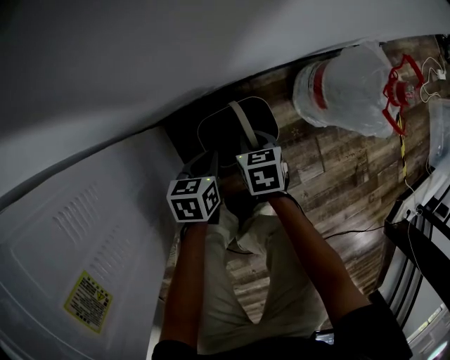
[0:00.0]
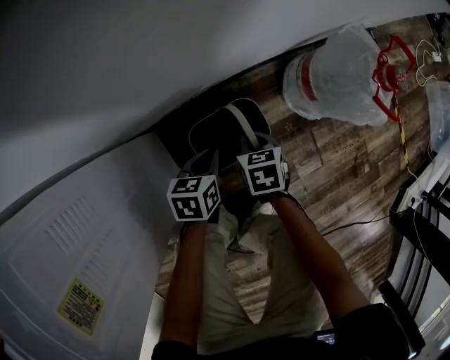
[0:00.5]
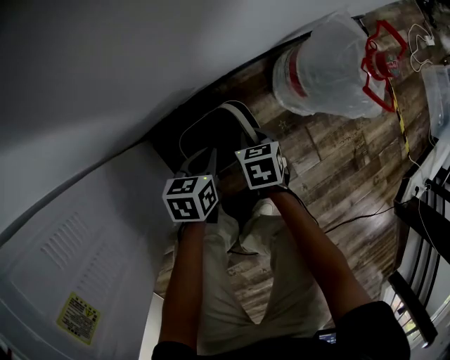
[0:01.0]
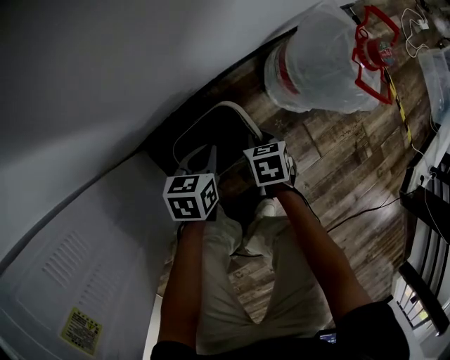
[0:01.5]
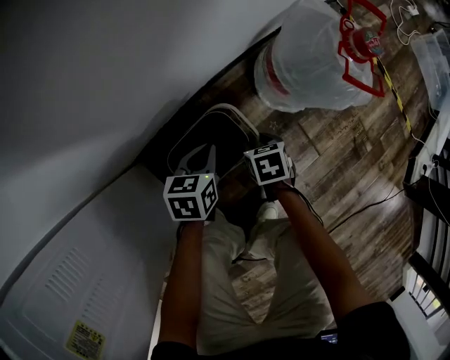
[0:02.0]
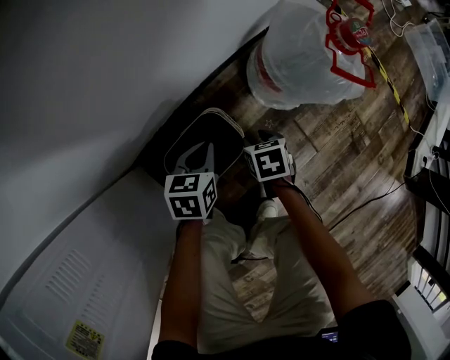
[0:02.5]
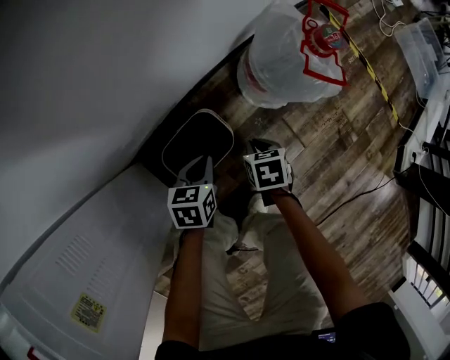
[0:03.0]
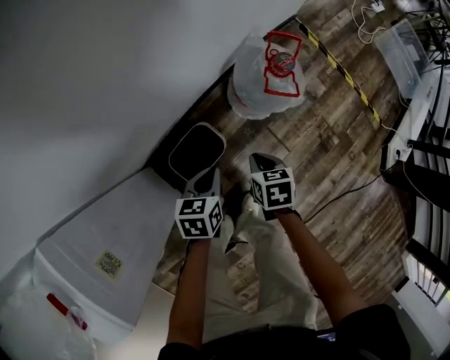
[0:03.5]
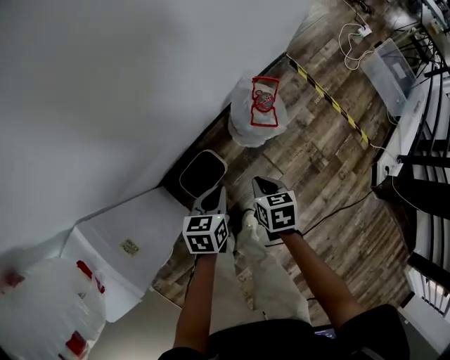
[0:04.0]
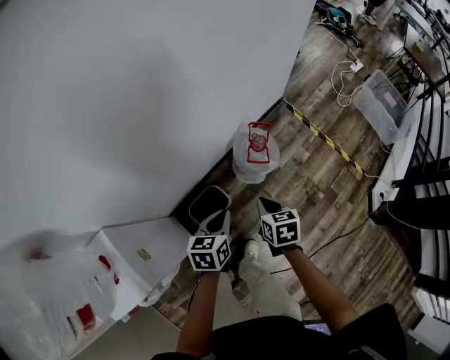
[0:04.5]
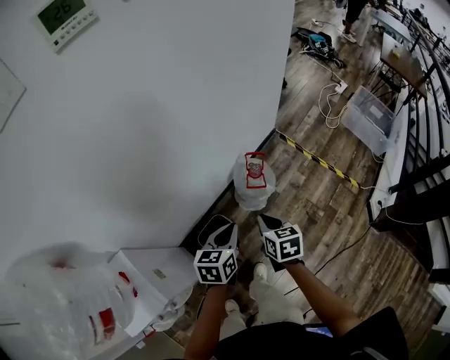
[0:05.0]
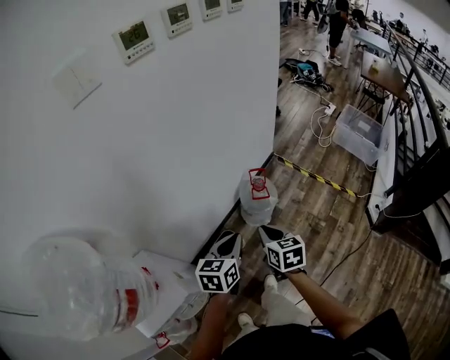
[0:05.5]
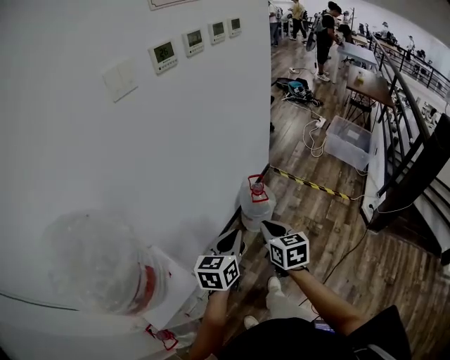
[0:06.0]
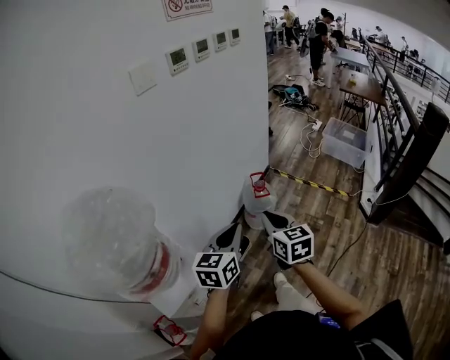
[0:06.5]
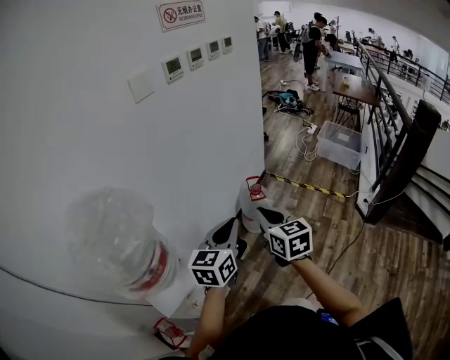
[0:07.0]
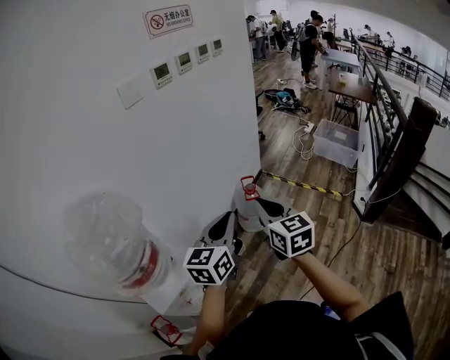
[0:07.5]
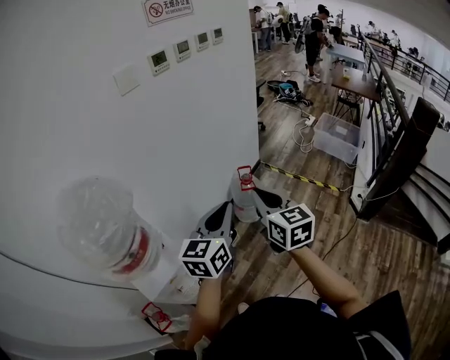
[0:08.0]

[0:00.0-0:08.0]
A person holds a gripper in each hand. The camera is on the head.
0:00.0 to 0:02.0: The right gripper goes about 15 cm to the right and downward, and opens. Meanwhile the left gripper travels to the right and forward by approximately 10 cm, and swivels roughly 20 degrees.
0:02.0 to 0:04.0: Both grippers move upward, roughly 40 cm. The right gripper closes its fingers.
0:04.0 to 0:06.0: The two grippers go some 40 cm upward and backward. The right gripper angles its fingers upward, by approximately 30 degrees. The left gripper turns by some 30 degrees.
0:06.0 to 0:08.0: Both grippers move upward and backward, roughly 20 cm.

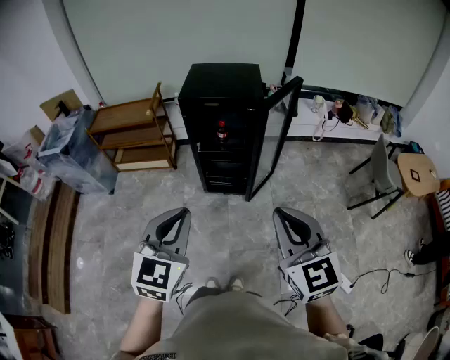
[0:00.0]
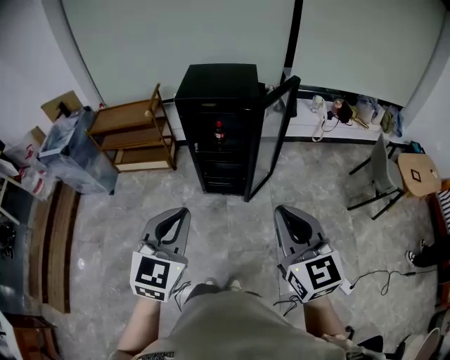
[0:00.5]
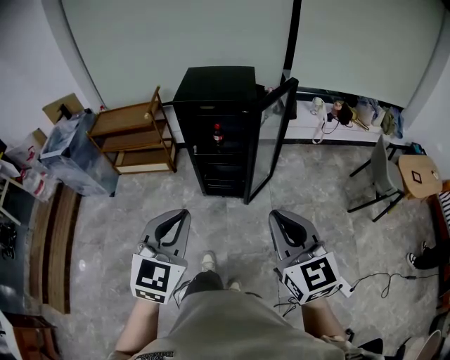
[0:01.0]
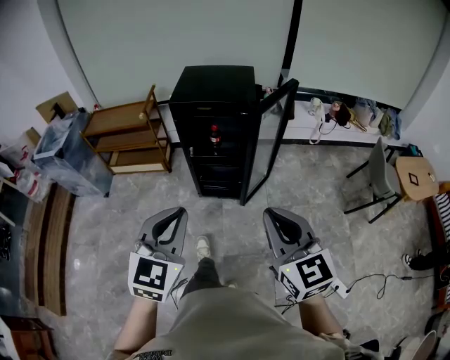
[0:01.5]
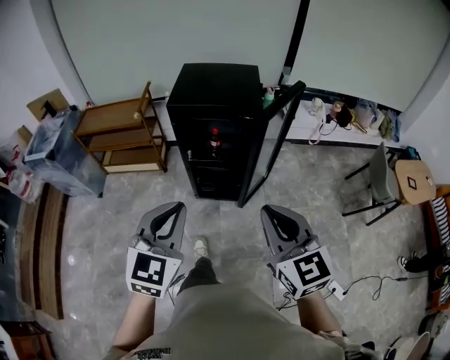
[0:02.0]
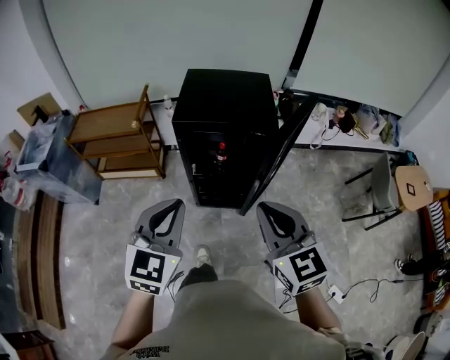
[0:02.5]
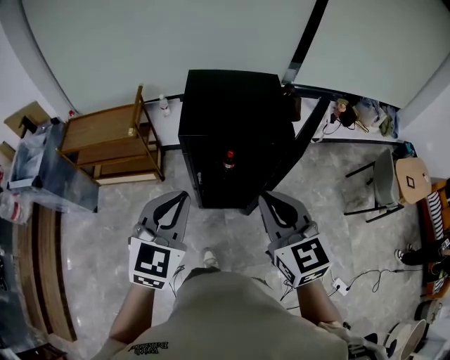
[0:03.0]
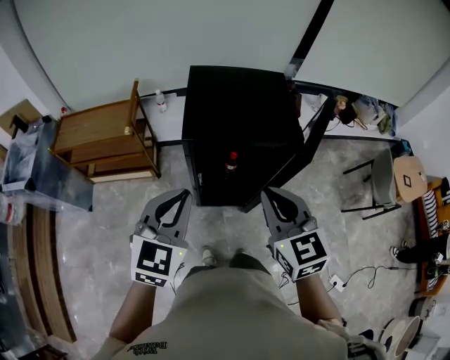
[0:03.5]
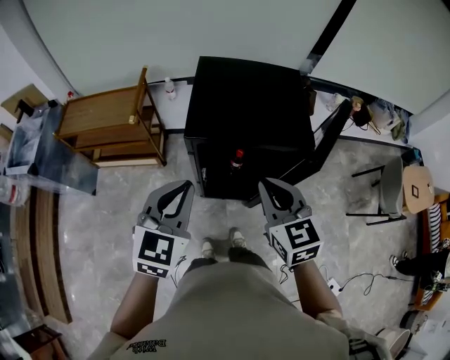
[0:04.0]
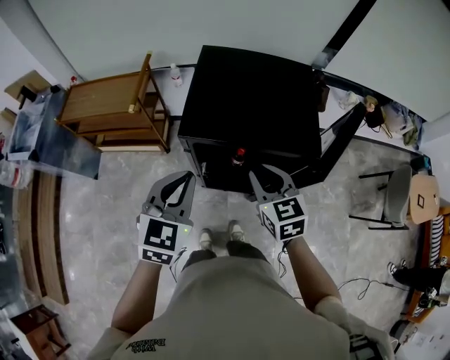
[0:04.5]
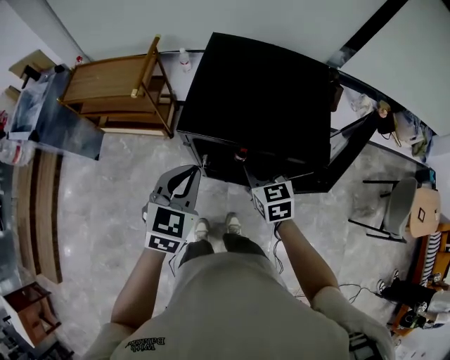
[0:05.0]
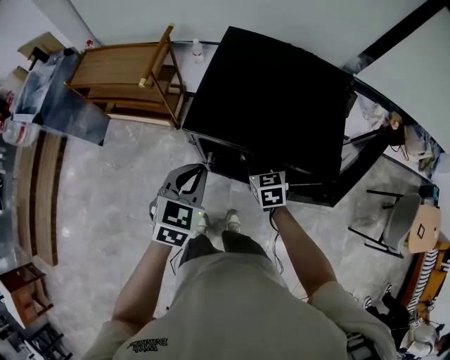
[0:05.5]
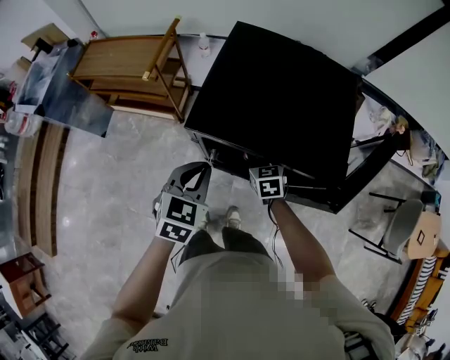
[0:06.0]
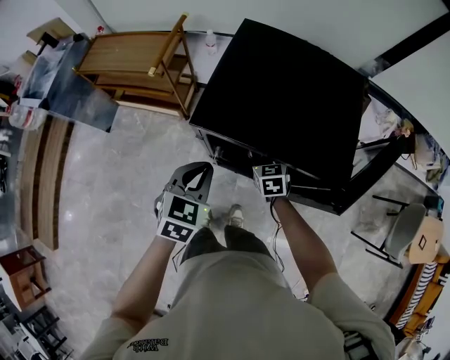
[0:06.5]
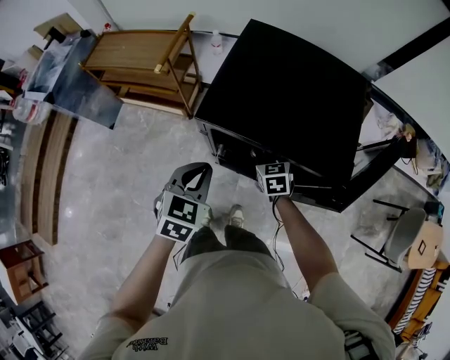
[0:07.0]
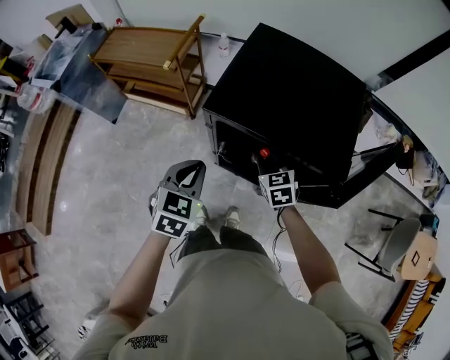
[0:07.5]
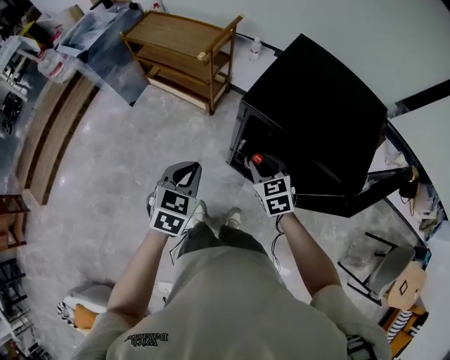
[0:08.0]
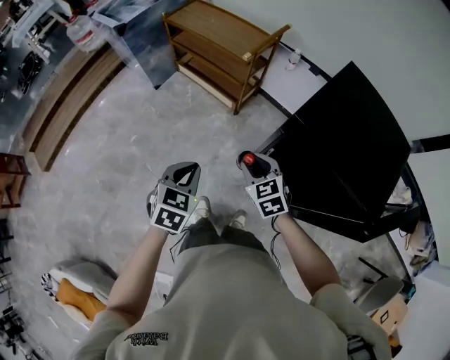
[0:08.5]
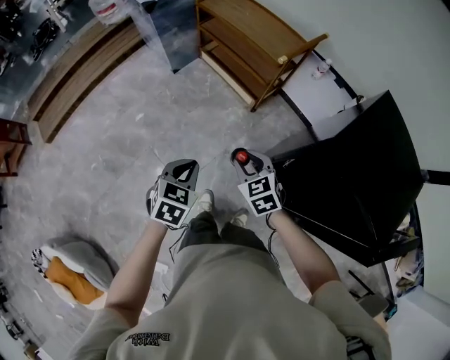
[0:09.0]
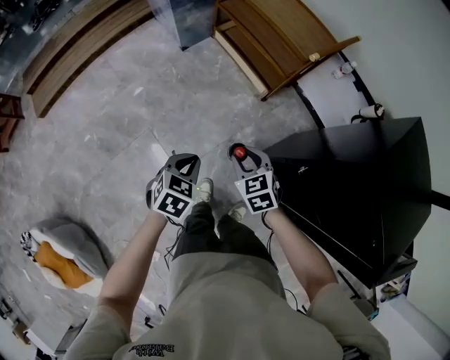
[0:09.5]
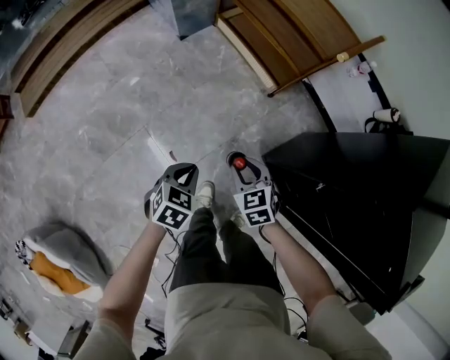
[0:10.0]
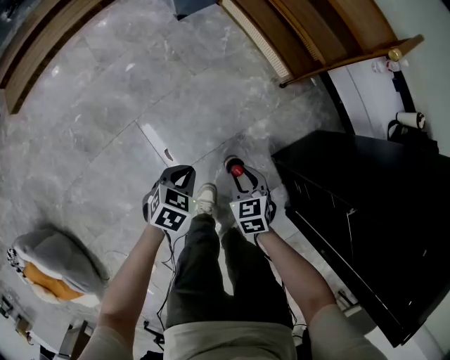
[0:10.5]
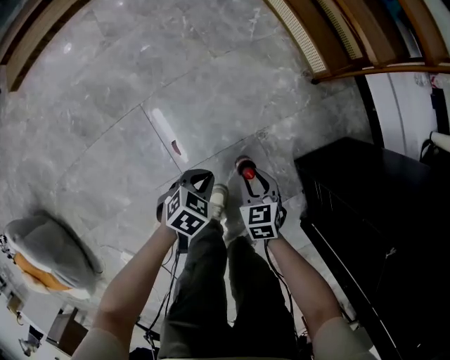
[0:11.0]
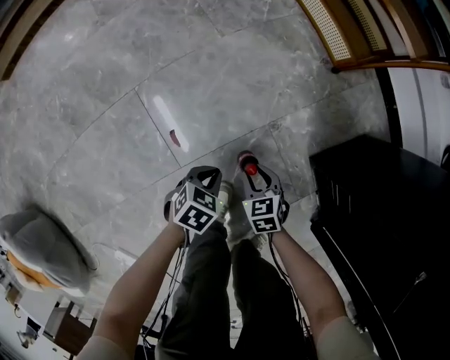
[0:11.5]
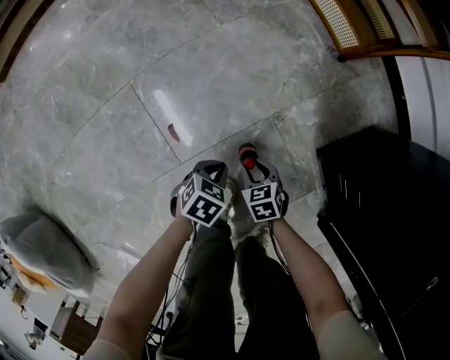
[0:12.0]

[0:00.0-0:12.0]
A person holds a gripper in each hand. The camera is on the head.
0:00.0 to 0:02.0: Both grippers move forward, roughly 10 cm.
0:02.0 to 0:04.0: The two grippers go about 30 cm forward.
0:04.0 to 0:06.0: The right gripper heads downward and forward, covering approximately 35 cm, changes its angle by approximately 20 degrees, and opens its fingers. Meanwhile the left gripper shifts approximately 20 cm downward and forward, and rotates about 20 degrees.
0:06.0 to 0:08.0: The right gripper shifts approximately 15 cm to the left, backward and upward, and rotates approximately 30 degrees, while the left gripper travels to the left and backward by approximately 15 cm.
0:08.0 to 0:10.0: The right gripper shifts about 40 cm to the left and downward, and turns by about 30 degrees. The left gripper shifts about 40 cm downward and to the left, and turns by about 30 degrees.
0:10.0 to 0:12.0: Both grippers move downward, approximately 50 cm. The right gripper turns by roughly 20 degrees.

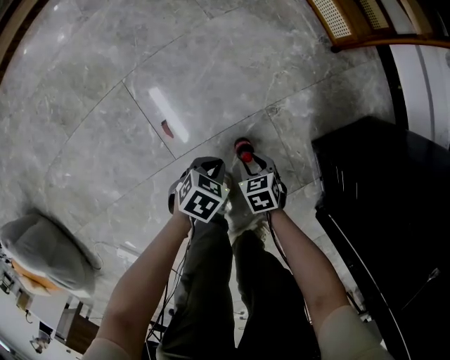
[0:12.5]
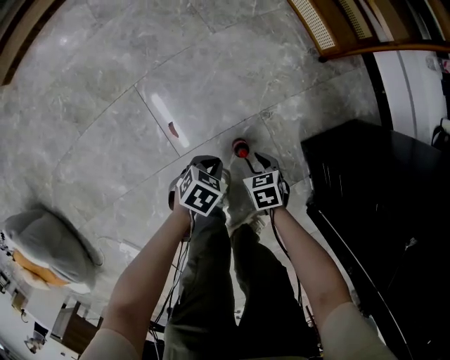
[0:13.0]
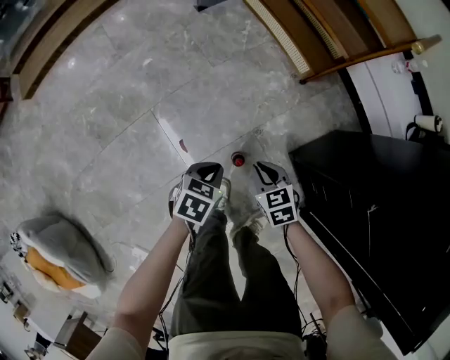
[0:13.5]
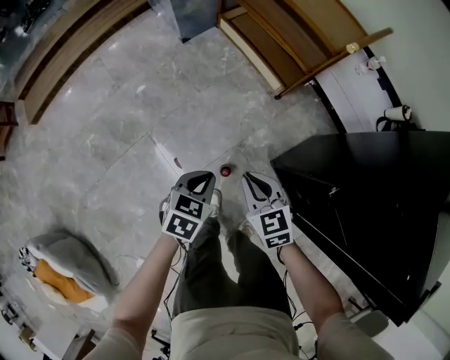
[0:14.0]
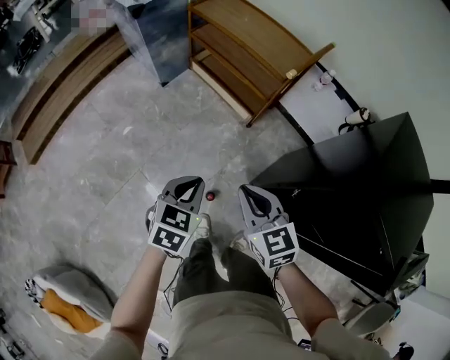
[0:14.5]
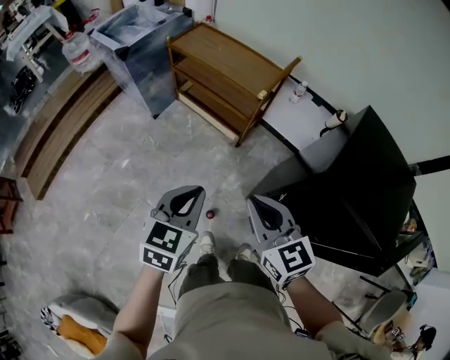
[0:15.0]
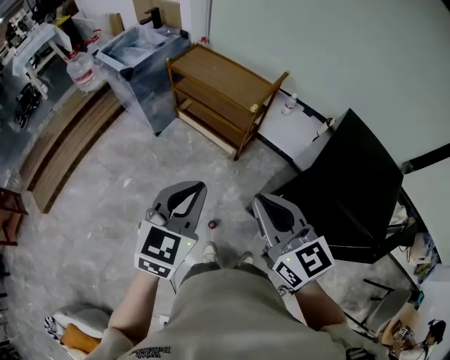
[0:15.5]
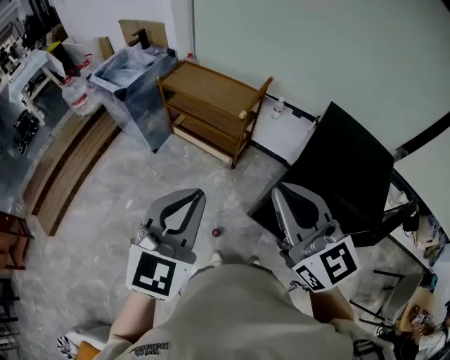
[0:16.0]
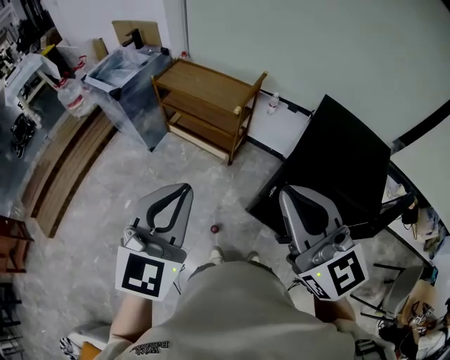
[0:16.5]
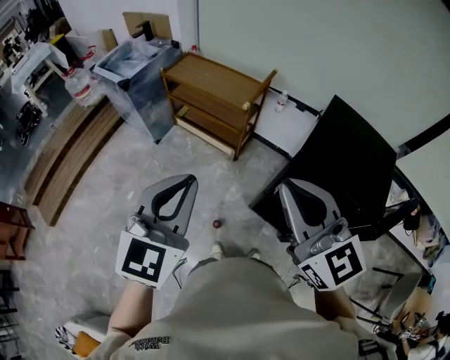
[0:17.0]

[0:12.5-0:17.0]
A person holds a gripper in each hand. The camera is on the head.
0:12.5 to 0:14.5: The two grippers go about 70 cm upward. The left gripper swivels about 30 degrees, while the right gripper tips its fingers upward by about 40 degrees, and closes.
0:14.5 to 0:17.0: The grippers both shift upward by roughly 35 cm. The left gripper tilts its fingers roughly 30 degrees upward, while the right gripper turns by some 30 degrees.

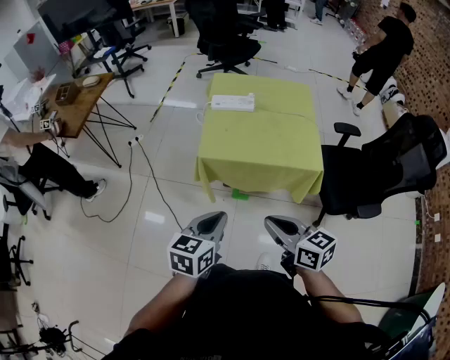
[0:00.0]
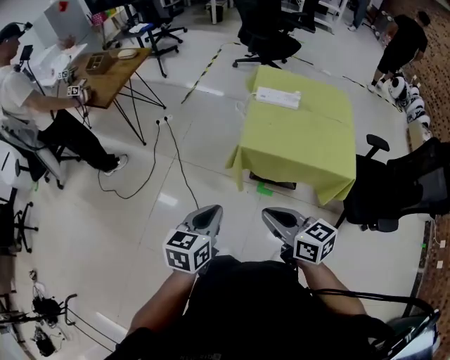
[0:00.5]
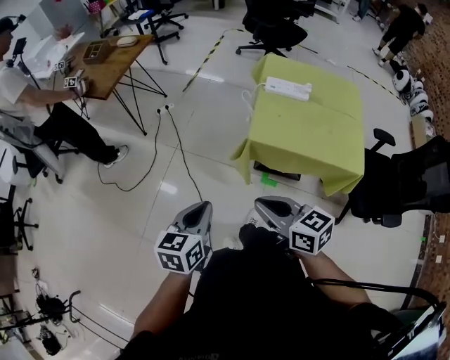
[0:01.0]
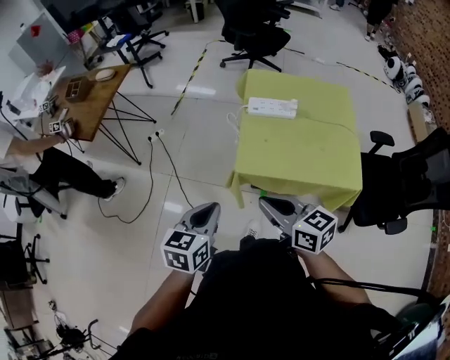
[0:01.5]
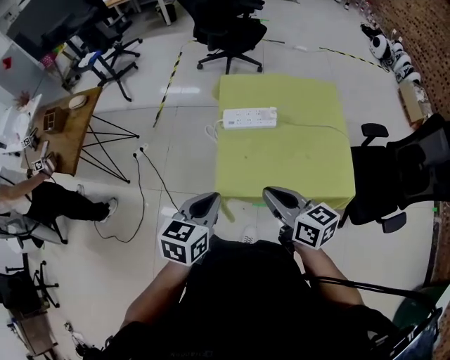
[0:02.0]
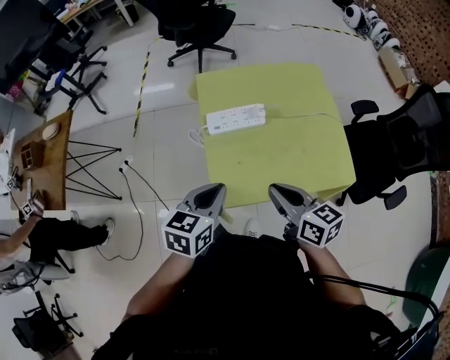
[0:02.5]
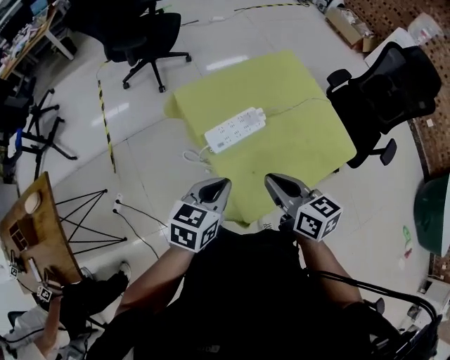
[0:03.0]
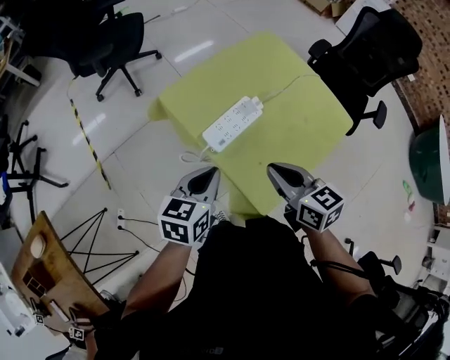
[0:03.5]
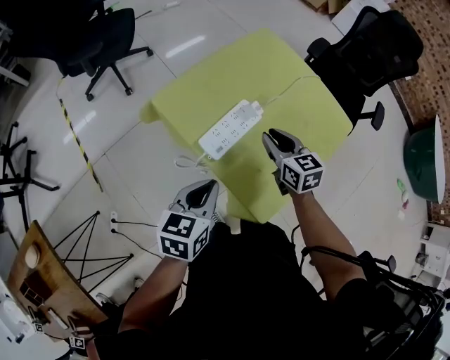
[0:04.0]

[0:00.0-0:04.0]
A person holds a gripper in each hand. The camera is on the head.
0:00.0 to 0:02.0: Both grippers travel together forward, approximately 30 cm.
0:02.0 to 0:04.0: The left gripper ends up some 25 cm from where it was, and changes its angle by approximately 40 degrees, while the right gripper moves about 25 cm, and swivels about 60 degrees.
